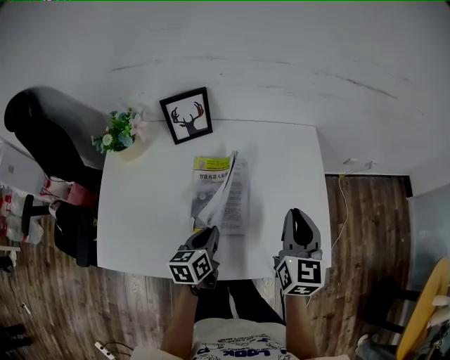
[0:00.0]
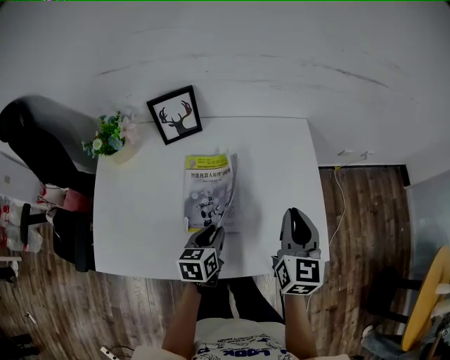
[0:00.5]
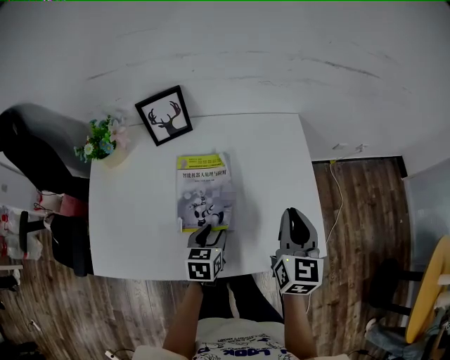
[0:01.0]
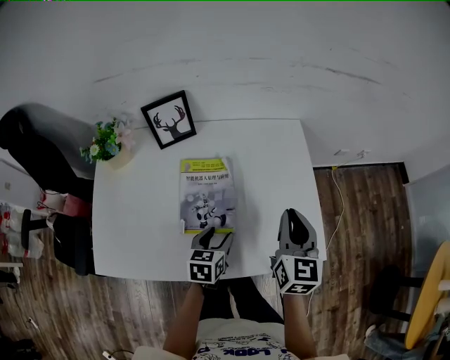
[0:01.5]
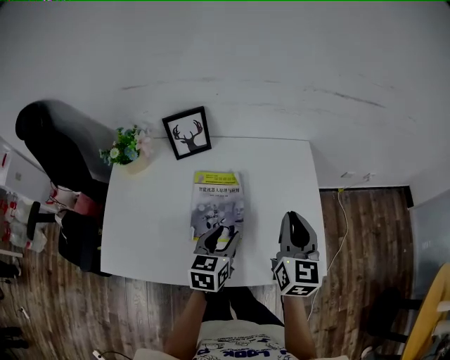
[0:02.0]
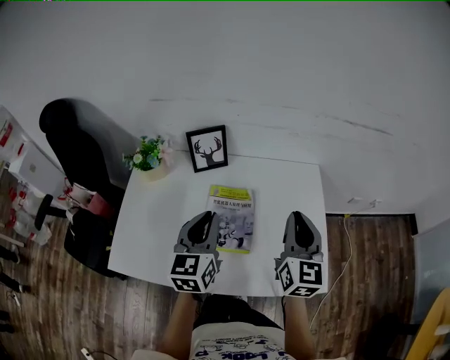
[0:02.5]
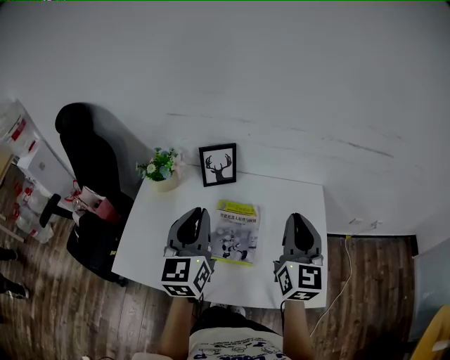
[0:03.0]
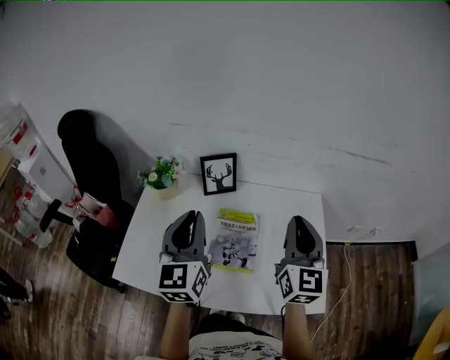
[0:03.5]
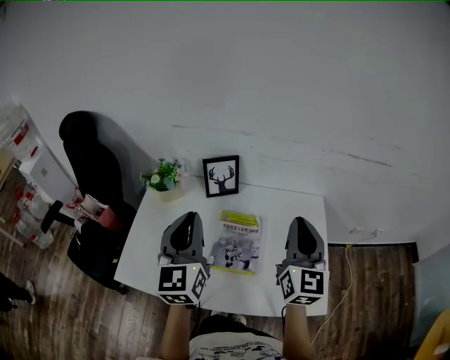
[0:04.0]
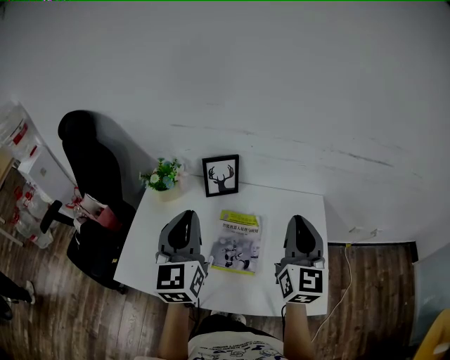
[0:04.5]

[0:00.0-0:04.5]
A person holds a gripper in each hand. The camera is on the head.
0:00.0 to 0:02.0: The left gripper is displaced upward and to the right by roughly 10 cm, and opens up.
0:02.0 to 0:04.5: The right gripper moves upward and to the left, roughly 15 cm. The left gripper moves upward and to the left, some 30 cm, turns by approximately 40 degrees, and closes its fingers.

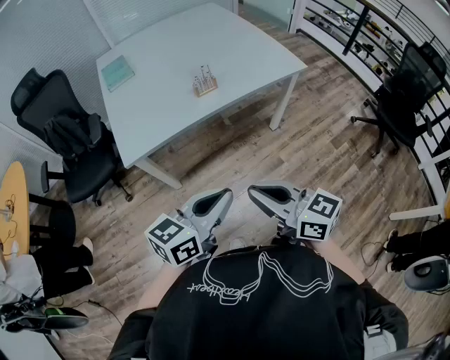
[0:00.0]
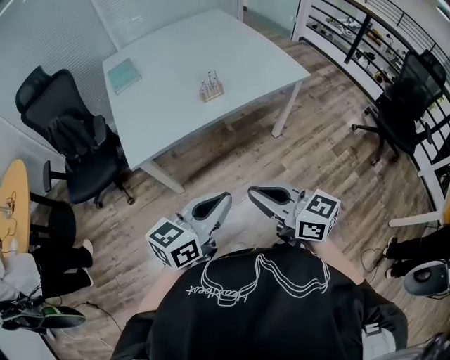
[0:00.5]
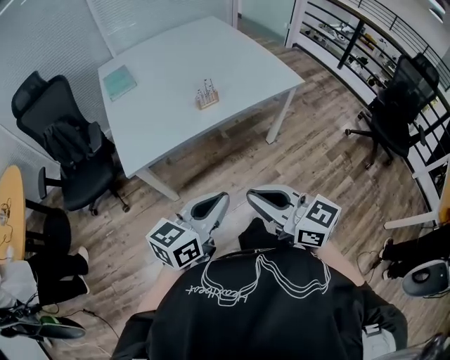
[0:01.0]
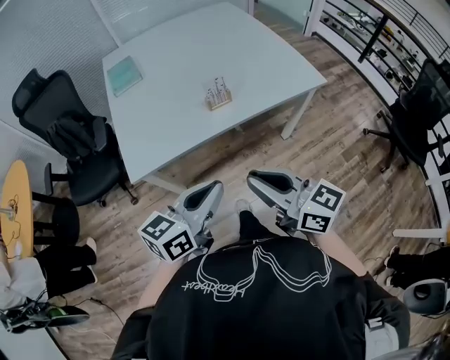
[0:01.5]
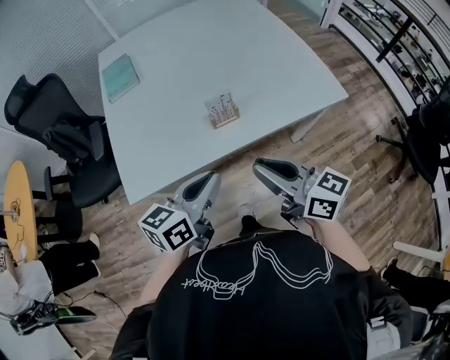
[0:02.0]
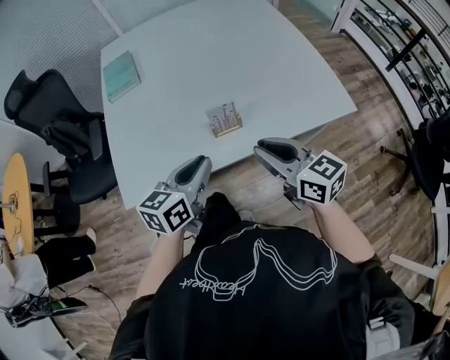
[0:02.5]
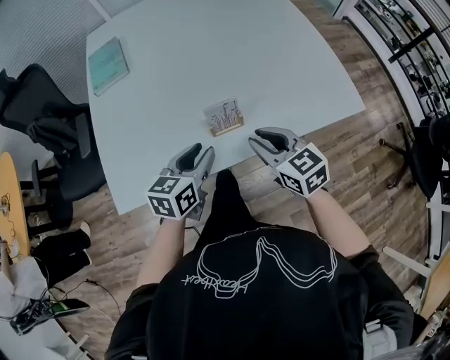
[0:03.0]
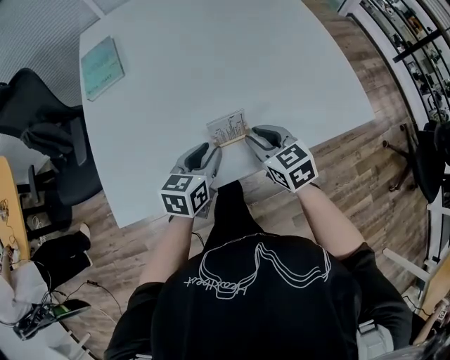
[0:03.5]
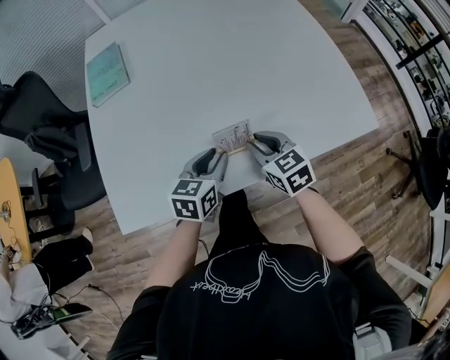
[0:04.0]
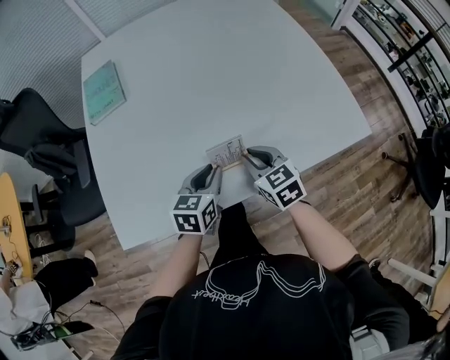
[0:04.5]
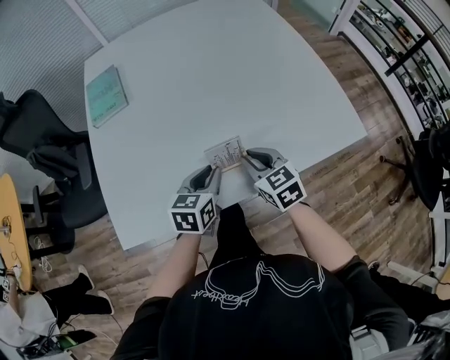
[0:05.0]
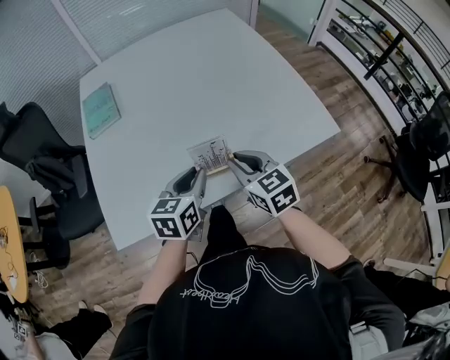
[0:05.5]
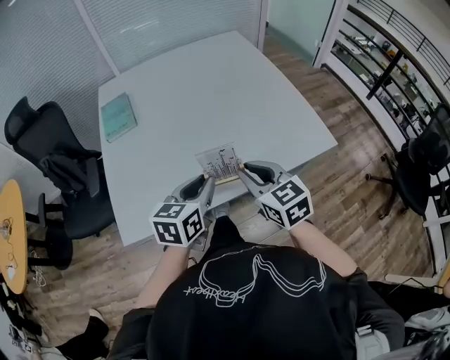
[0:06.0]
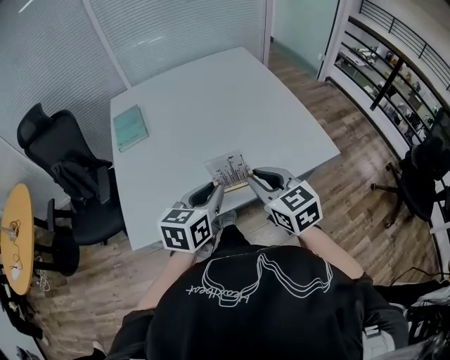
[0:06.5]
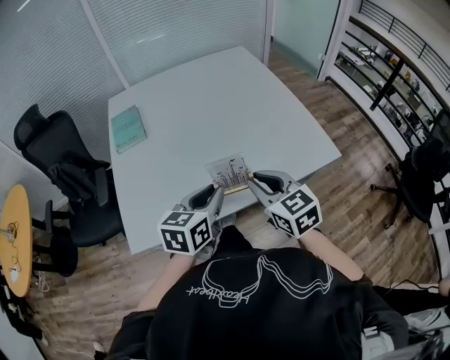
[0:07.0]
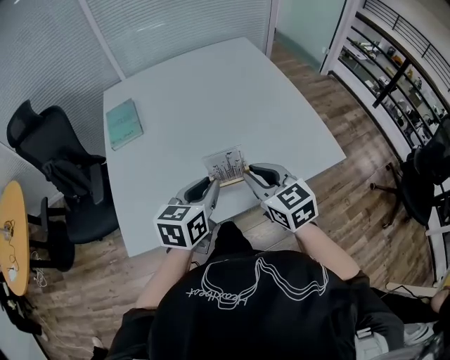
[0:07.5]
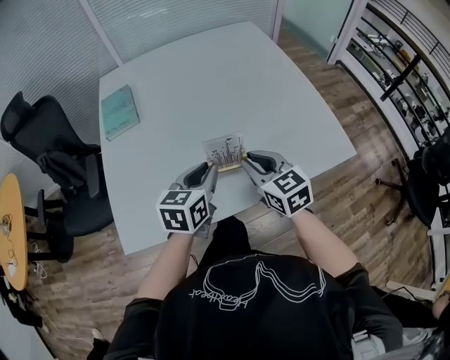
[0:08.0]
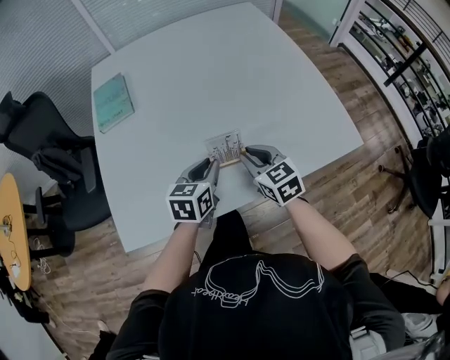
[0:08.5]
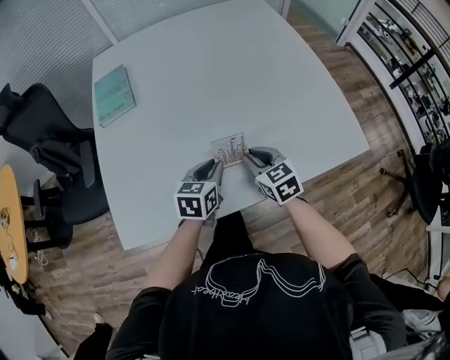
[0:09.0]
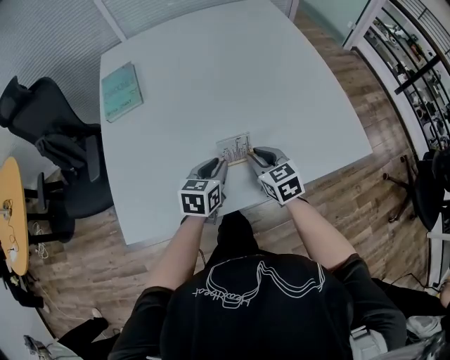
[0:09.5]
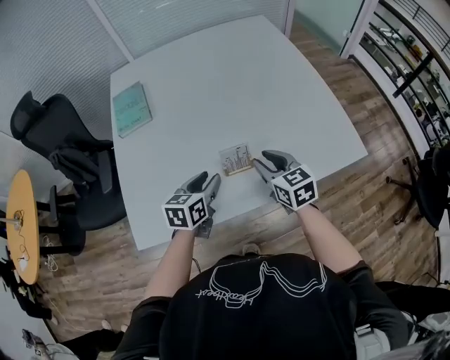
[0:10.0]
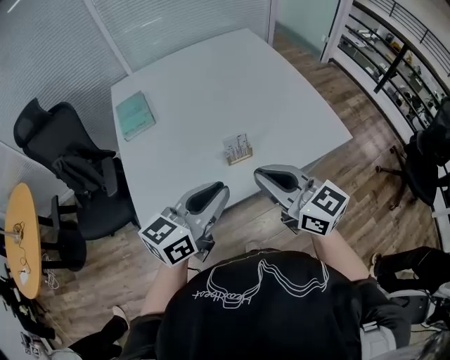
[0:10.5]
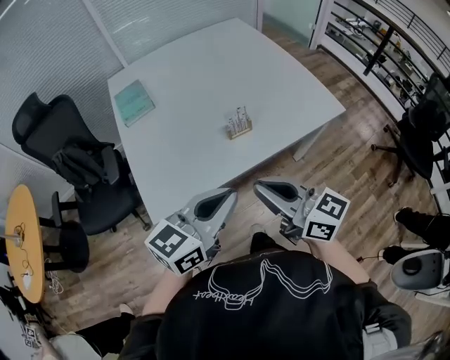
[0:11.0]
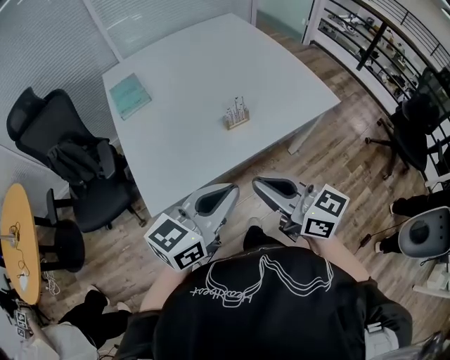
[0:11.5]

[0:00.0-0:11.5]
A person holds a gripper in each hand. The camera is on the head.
0:00.0 to 0:02.0: Both grippers move forward, approximately 30 cm.
0:02.0 to 0:04.0: Both grippers travel together forward and downward, approximately 30 cm. The right gripper points its fingers roughly 30 degrees further downward. Meanwhile the left gripper rotates approximately 20 degrees, and opens up.
0:04.0 to 0:06.0: The two grippers go approximately 20 cm upward and backward.
0:06.0 to 0:07.5: The grippers stay close to where they were, moving slightly.
0:07.5 to 0:09.5: Both grippers move downward and forward, approximately 20 cm.
0:09.5 to 0:11.5: Both grippers move backward and upward, some 40 cm. The right gripper tilts its fingers roughly 30 degrees upward. The left gripper changes its angle by about 40 degrees.

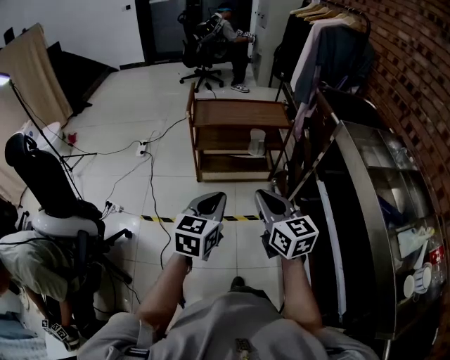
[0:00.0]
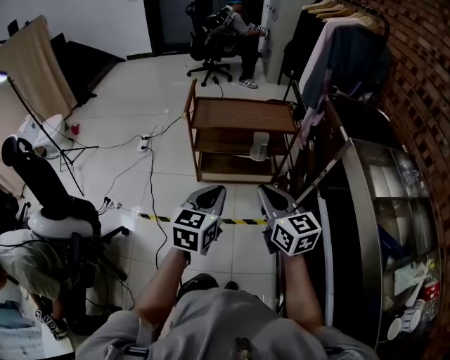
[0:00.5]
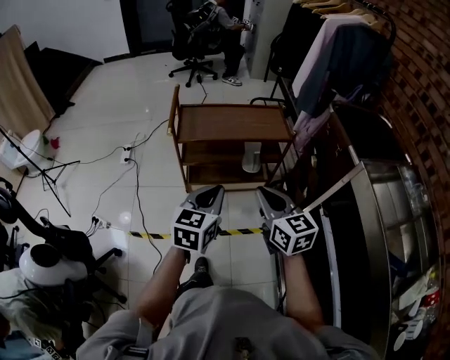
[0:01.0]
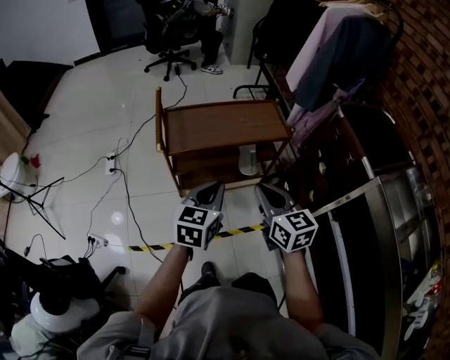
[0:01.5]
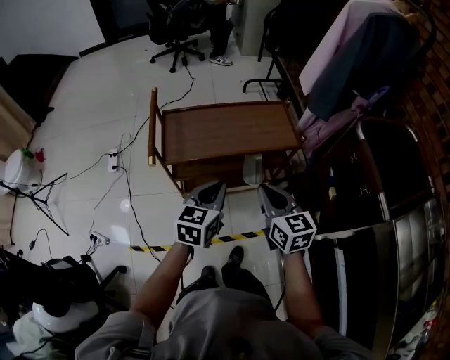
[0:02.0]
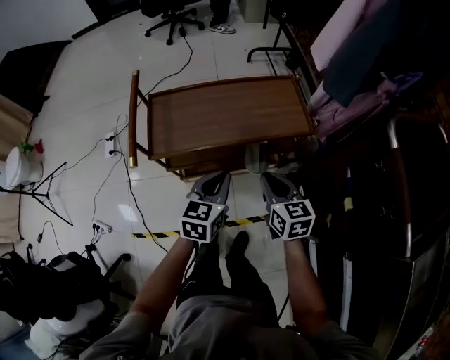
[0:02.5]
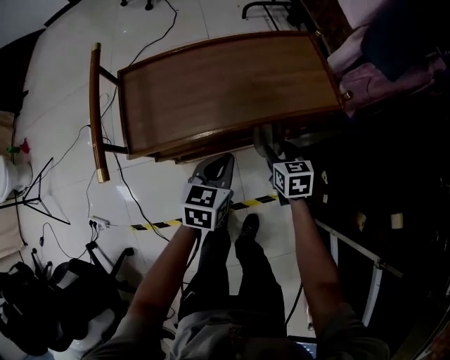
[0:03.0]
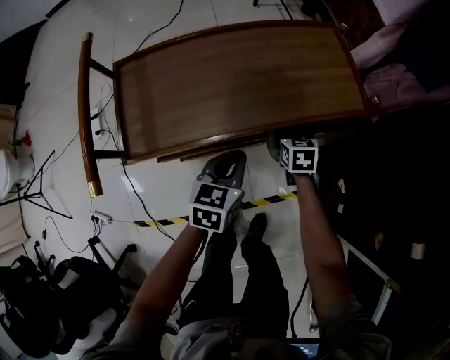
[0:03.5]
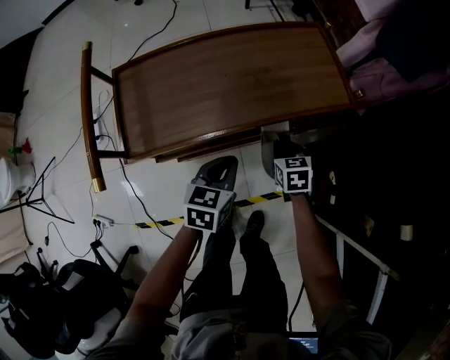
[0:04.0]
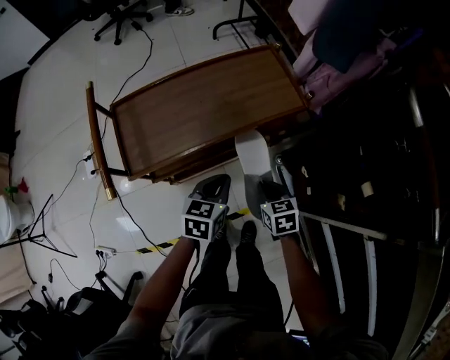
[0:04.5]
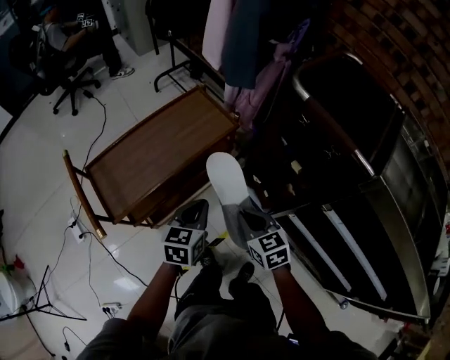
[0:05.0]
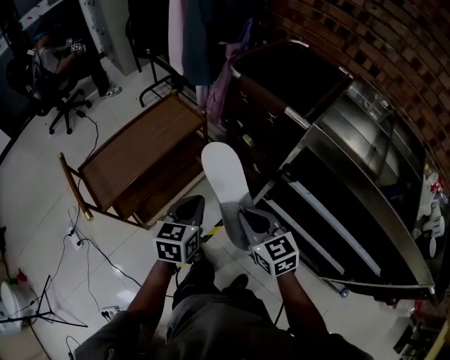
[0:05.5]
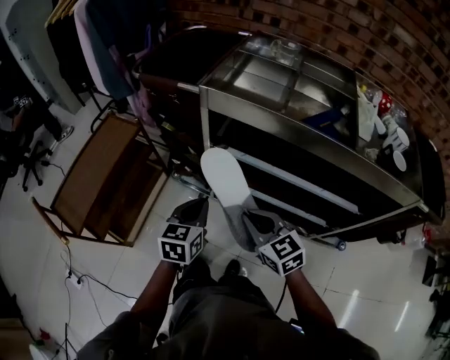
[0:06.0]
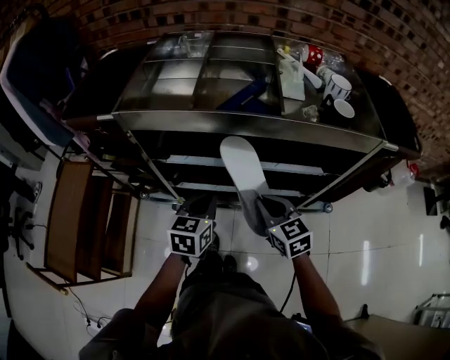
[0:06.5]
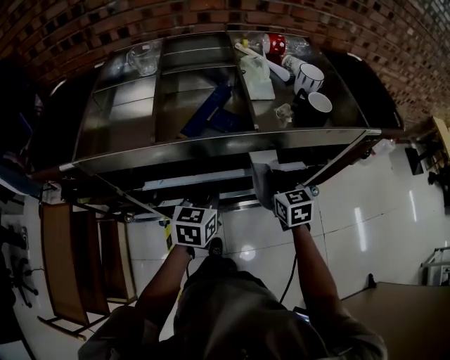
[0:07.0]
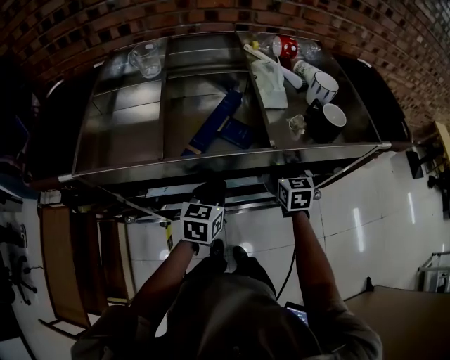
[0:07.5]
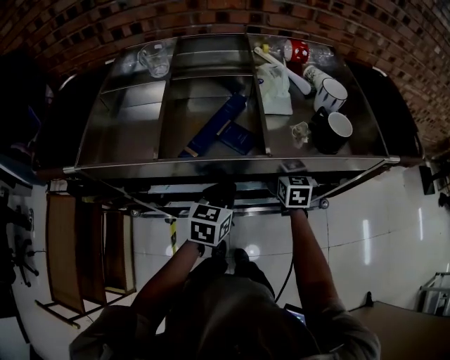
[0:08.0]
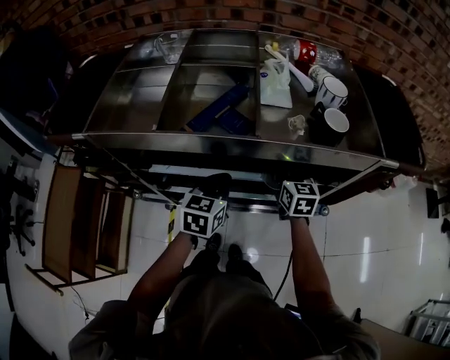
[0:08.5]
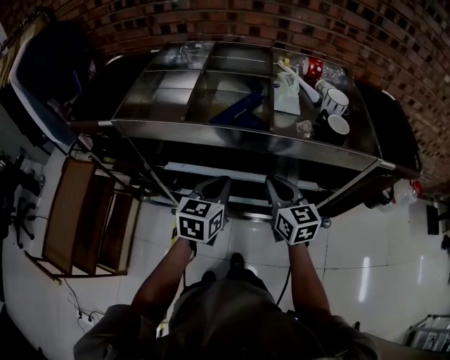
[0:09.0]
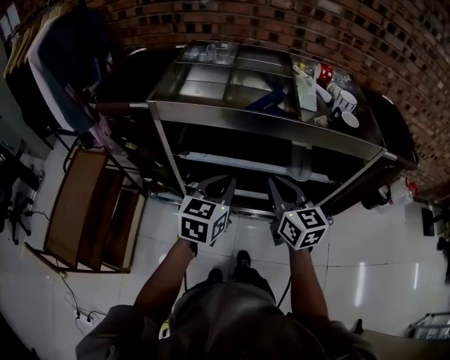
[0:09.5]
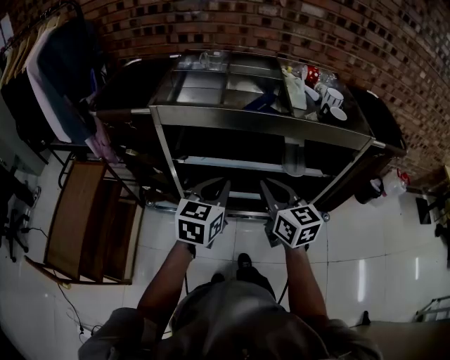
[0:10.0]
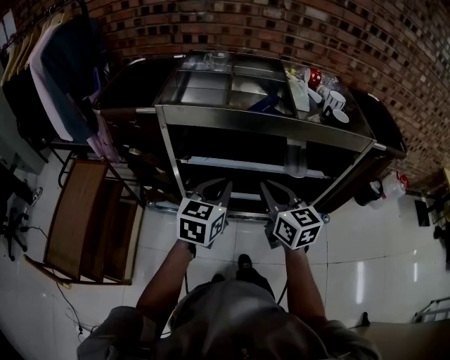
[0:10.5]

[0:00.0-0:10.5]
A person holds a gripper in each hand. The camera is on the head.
0:00.0 to 0:02.0: The two grippers travel together, forward, about 40 cm.
0:02.0 to 0:04.0: Both grippers travel together downward and forward, approximately 35 cm. The right gripper points its fingers roughly 30 degrees further downward, and opens and closes again.
0:04.0 to 0:06.5: The two grippers travel together, approximately 70 cm. The right gripper changes its angle by some 60 degrees; the left gripper swivels roughly 70 degrees.
0:06.5 to 0:08.5: The left gripper travels forward and to the right by approximately 15 cm, while the right gripper goes roughly 25 cm forward and to the right, rotates approximately 20 degrees, and opens its fingers.
0:08.5 to 0:10.5: The right gripper goes approximately 35 cm backward, to the left and upward, swivels some 20 degrees, and closes. The left gripper moves backward, to the left and upward, approximately 25 cm.
